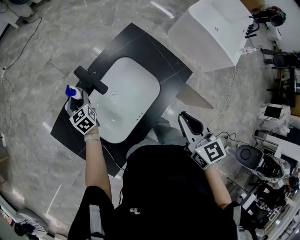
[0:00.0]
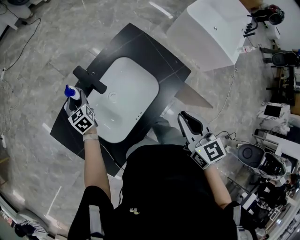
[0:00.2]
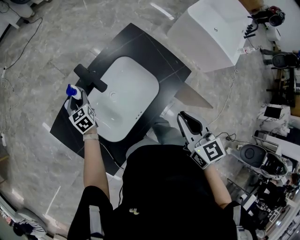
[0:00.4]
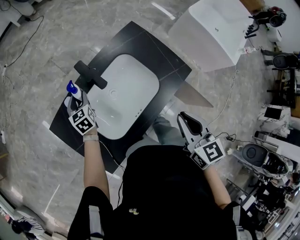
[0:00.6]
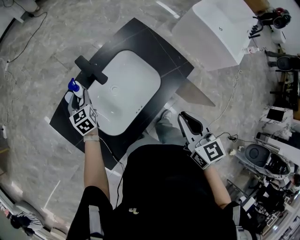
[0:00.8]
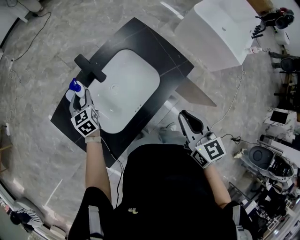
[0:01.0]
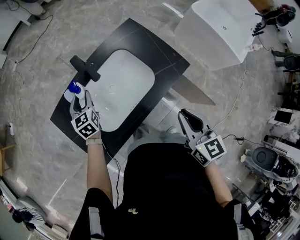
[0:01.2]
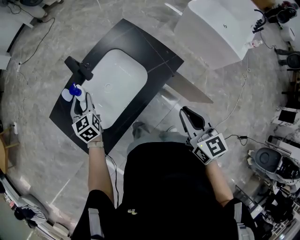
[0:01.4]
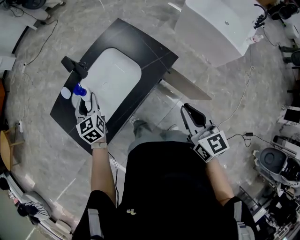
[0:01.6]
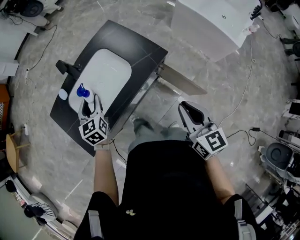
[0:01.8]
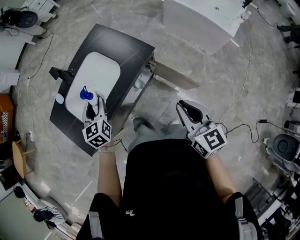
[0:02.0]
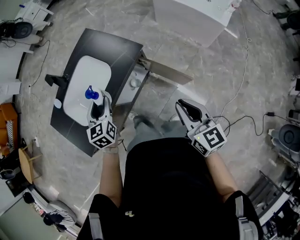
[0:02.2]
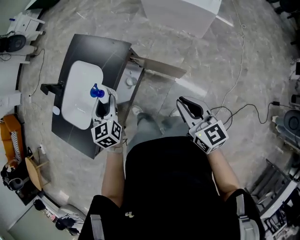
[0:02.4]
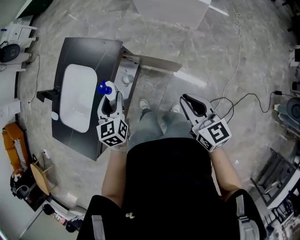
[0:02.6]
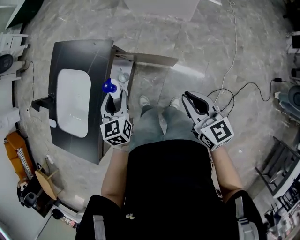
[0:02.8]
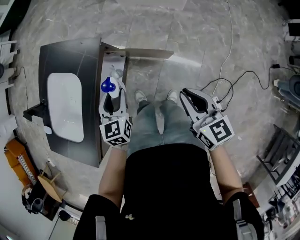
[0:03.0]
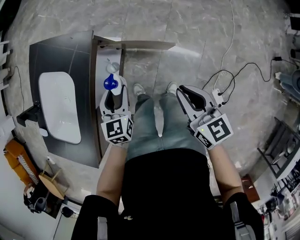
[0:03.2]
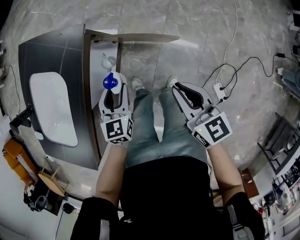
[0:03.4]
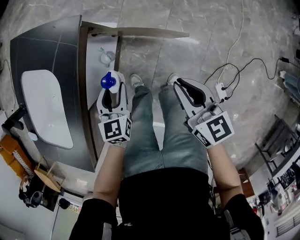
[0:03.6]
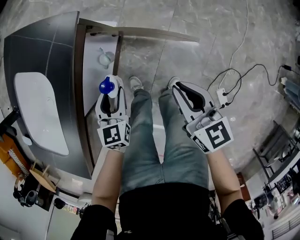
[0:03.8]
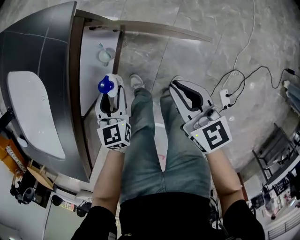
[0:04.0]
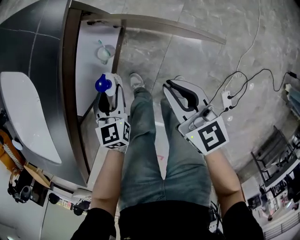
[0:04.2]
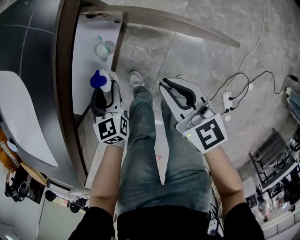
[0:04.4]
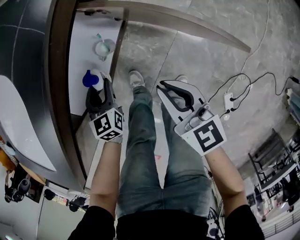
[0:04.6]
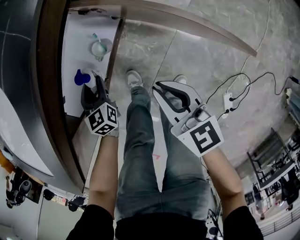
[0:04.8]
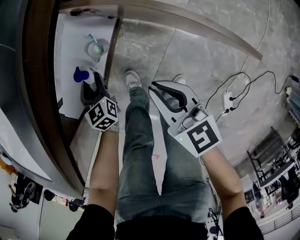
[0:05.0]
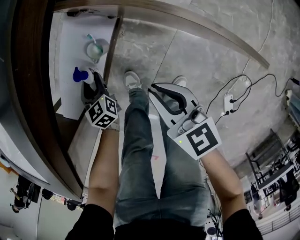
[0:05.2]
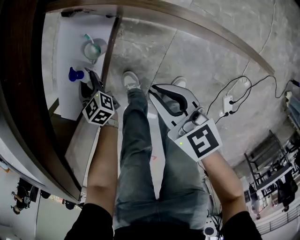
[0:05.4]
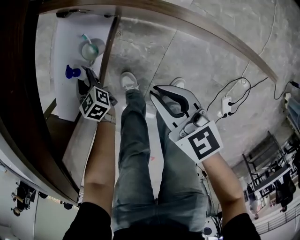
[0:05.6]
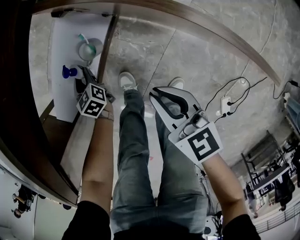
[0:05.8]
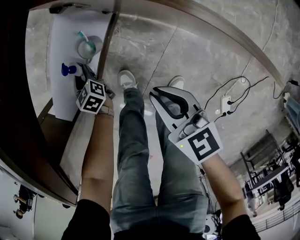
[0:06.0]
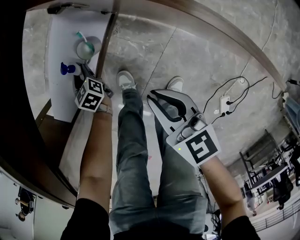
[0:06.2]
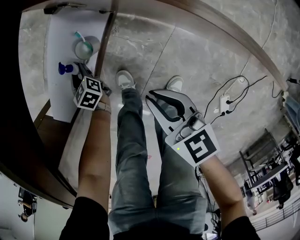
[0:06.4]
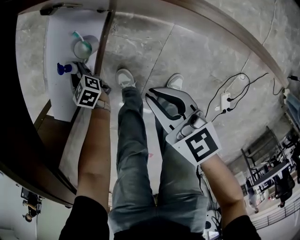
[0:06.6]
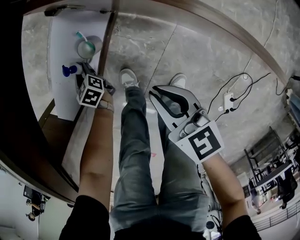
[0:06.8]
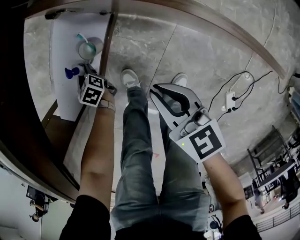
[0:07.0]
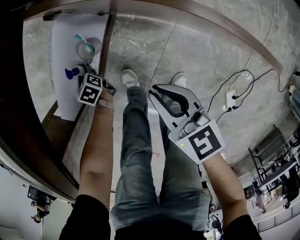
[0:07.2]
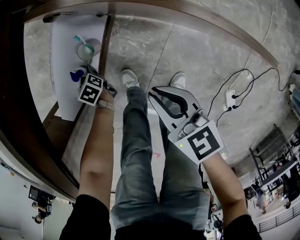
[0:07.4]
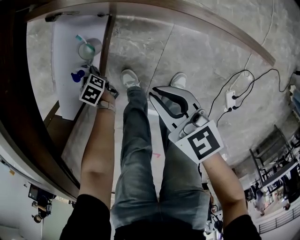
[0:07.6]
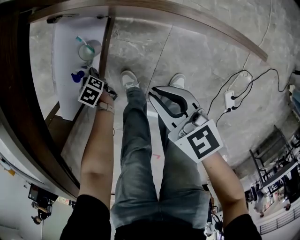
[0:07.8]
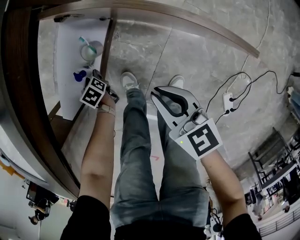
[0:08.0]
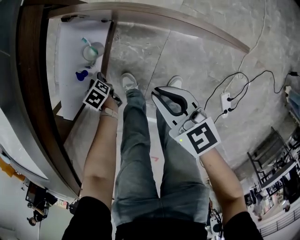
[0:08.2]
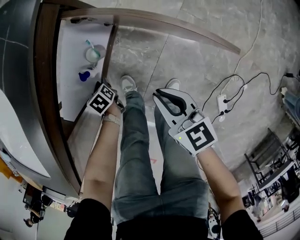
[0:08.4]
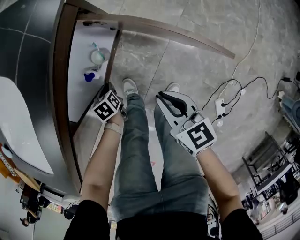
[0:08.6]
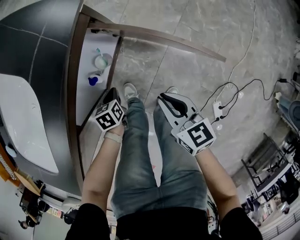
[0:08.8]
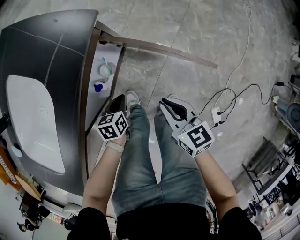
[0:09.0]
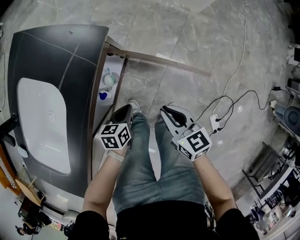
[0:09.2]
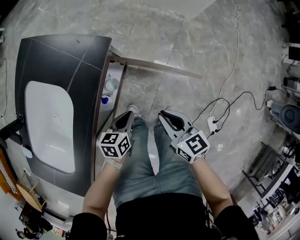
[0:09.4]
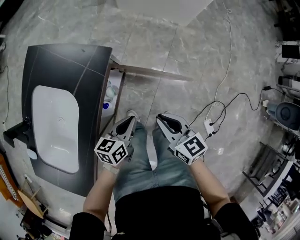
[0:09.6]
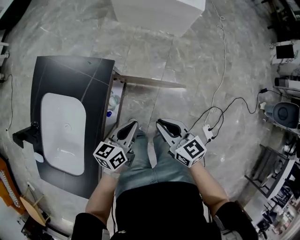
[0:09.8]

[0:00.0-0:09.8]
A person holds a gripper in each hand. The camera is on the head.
0:00.0 to 0:01.4: The left gripper heads backward, upward and to the right, covering approximately 20 cm, while the right gripper goes roughly 15 cm backward and to the right.
0:01.4 to 0:02.8: The left gripper changes place by approximately 50 cm, and changes its angle by about 40 degrees. Meanwhile the right gripper ends up roughly 35 cm from where it was, and changes its angle by roughly 20 degrees.
0:02.8 to 0:04.2: The right gripper heads downward and to the left, covering about 30 cm. Meanwhile the left gripper goes roughly 30 cm downward.
0:04.2 to 0:05.6: The right gripper heads downward, covering approximately 15 cm; the left gripper heads downward and to the left, covering some 25 cm, and turns by some 30 degrees.
0:05.6 to 0:07.0: The left gripper shifts approximately 5 cm downward.
0:07.0 to 0:08.4: The left gripper goes some 10 cm backward and upward, while the right gripper is displaced upward by some 5 cm.
0:08.4 to 0:09.8: The right gripper goes roughly 25 cm upward. The left gripper moves upward, approximately 50 cm, points its fingers some 50 degrees further upward, and closes up.

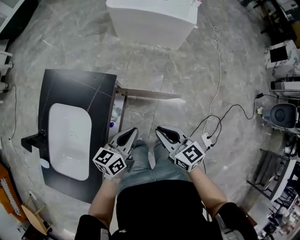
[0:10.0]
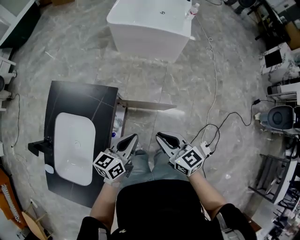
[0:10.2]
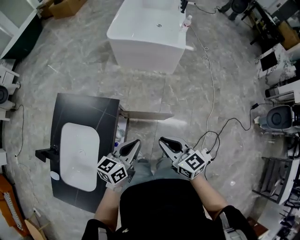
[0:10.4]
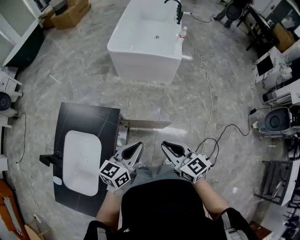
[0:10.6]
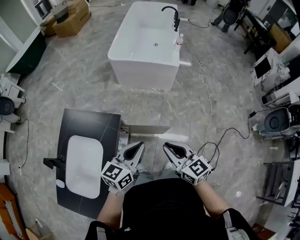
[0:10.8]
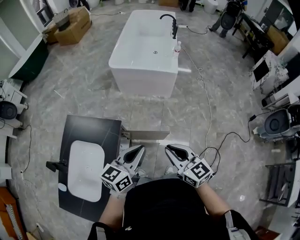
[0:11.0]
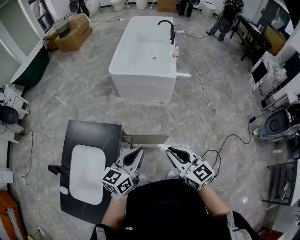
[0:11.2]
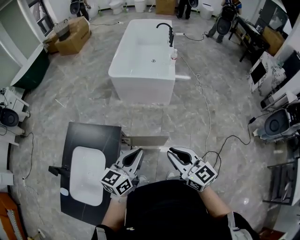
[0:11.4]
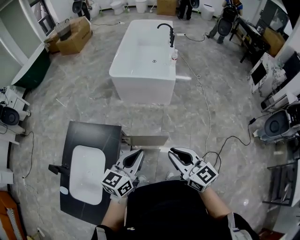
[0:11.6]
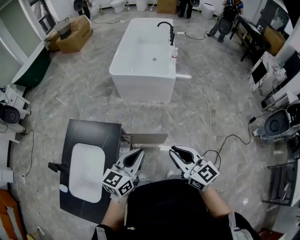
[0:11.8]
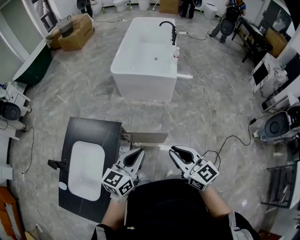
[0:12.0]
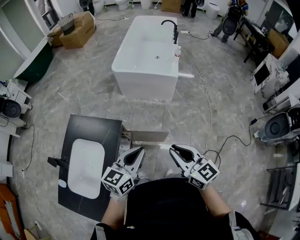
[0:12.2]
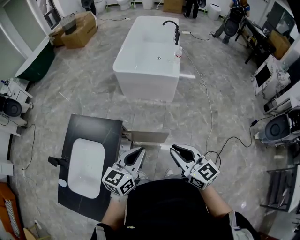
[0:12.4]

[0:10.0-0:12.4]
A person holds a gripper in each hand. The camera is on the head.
0:10.0 to 0:11.2: Both grippers move upward, approximately 25 cm. The left gripper rotates approximately 20 degrees.
0:11.2 to 0:12.4: The grippers stay close to where they were, moving slightly.

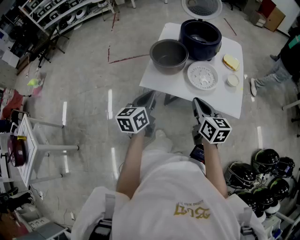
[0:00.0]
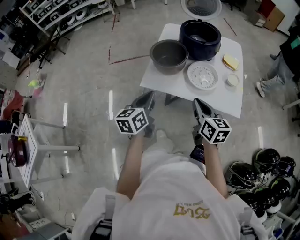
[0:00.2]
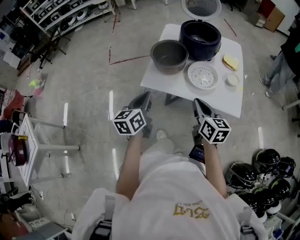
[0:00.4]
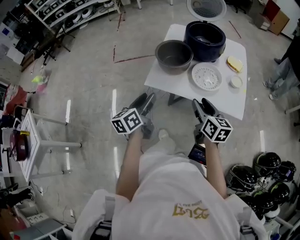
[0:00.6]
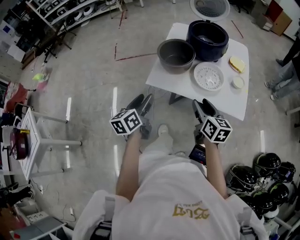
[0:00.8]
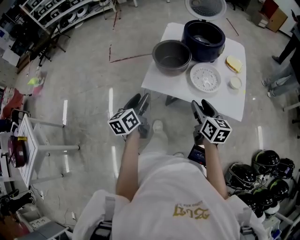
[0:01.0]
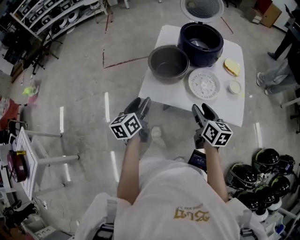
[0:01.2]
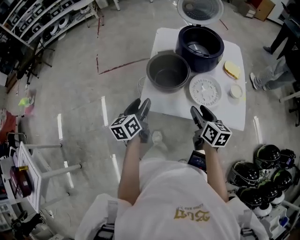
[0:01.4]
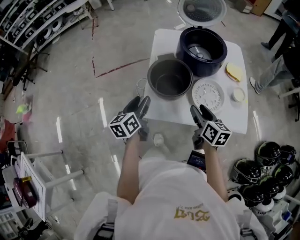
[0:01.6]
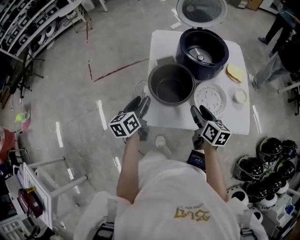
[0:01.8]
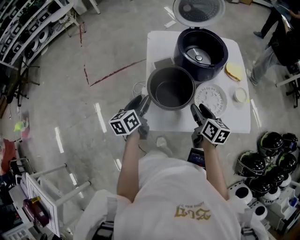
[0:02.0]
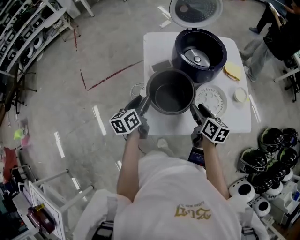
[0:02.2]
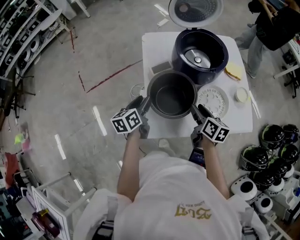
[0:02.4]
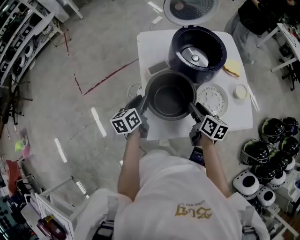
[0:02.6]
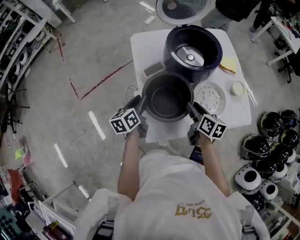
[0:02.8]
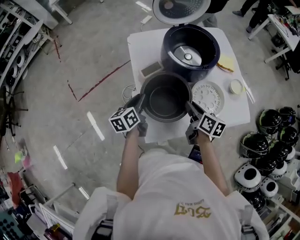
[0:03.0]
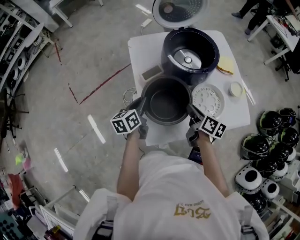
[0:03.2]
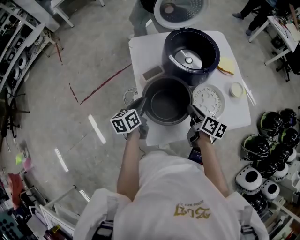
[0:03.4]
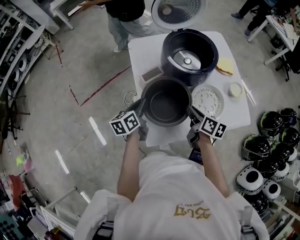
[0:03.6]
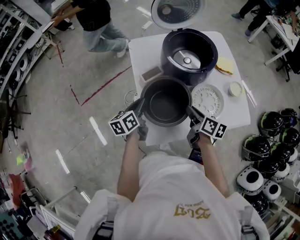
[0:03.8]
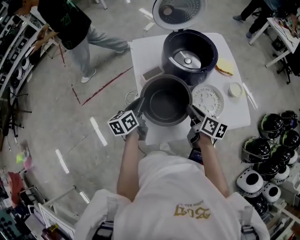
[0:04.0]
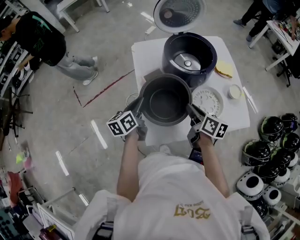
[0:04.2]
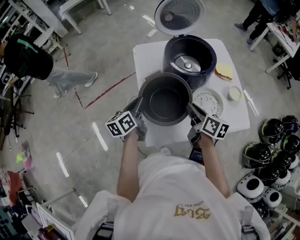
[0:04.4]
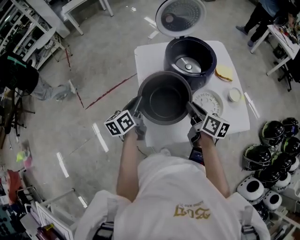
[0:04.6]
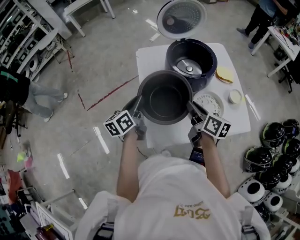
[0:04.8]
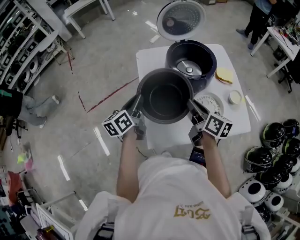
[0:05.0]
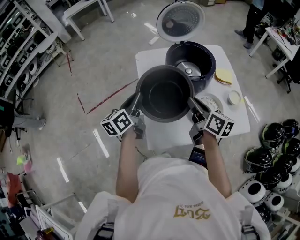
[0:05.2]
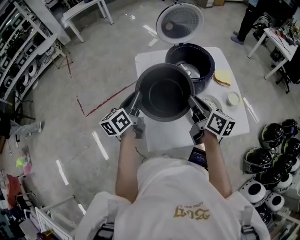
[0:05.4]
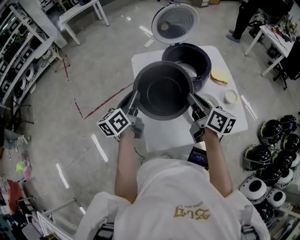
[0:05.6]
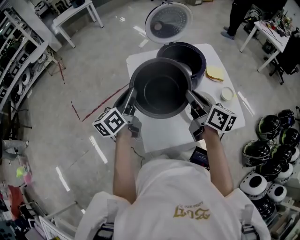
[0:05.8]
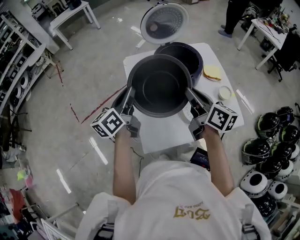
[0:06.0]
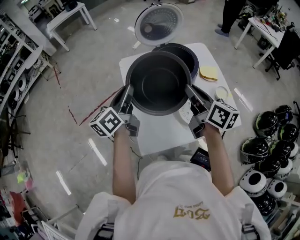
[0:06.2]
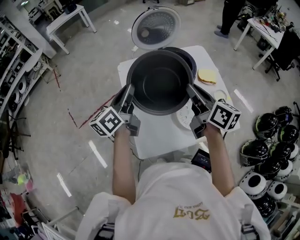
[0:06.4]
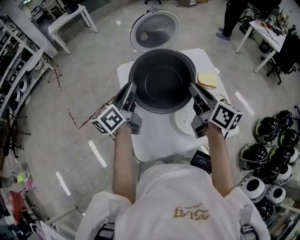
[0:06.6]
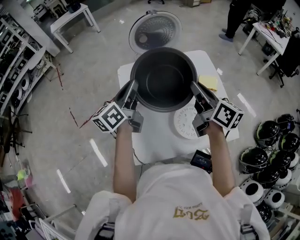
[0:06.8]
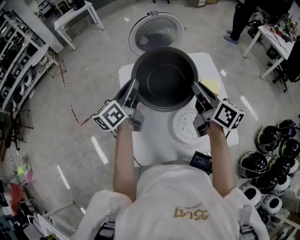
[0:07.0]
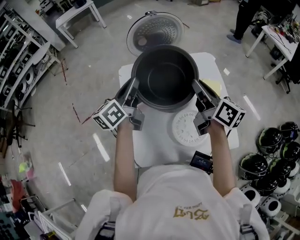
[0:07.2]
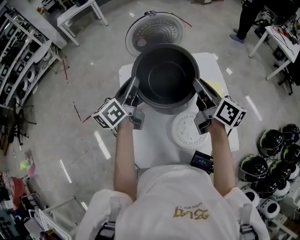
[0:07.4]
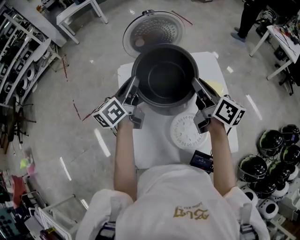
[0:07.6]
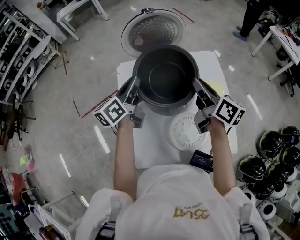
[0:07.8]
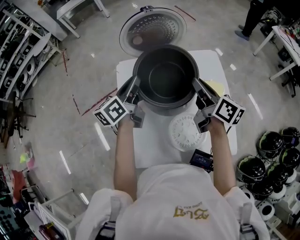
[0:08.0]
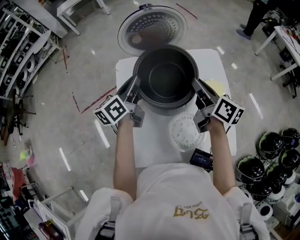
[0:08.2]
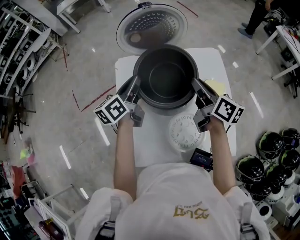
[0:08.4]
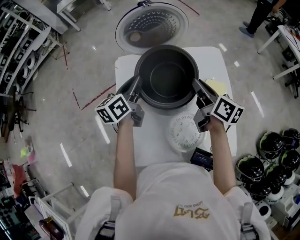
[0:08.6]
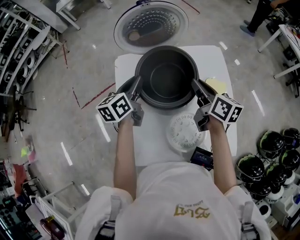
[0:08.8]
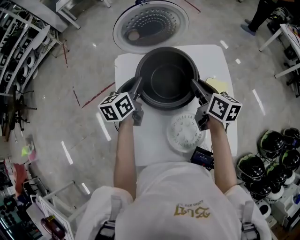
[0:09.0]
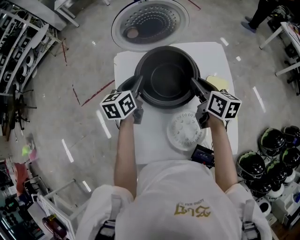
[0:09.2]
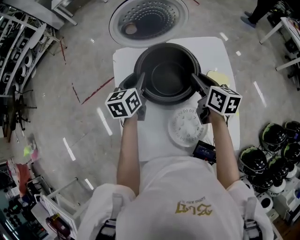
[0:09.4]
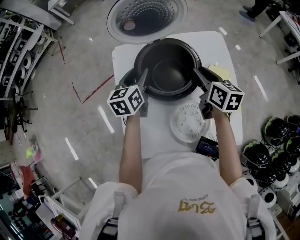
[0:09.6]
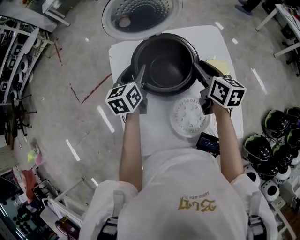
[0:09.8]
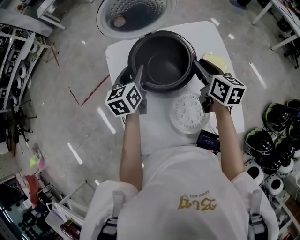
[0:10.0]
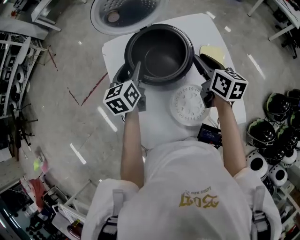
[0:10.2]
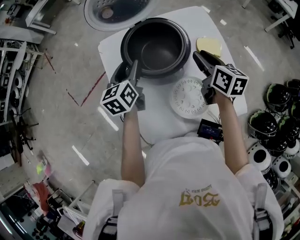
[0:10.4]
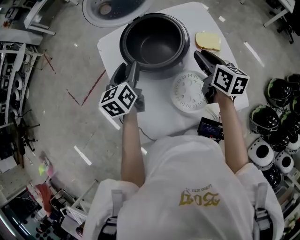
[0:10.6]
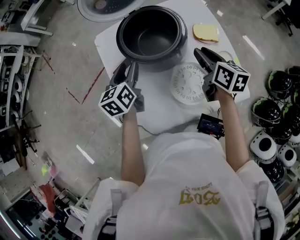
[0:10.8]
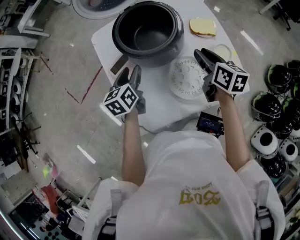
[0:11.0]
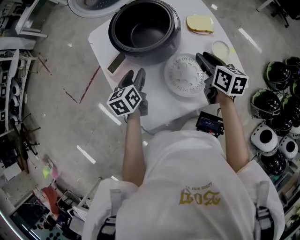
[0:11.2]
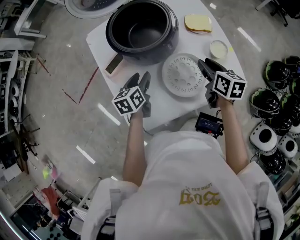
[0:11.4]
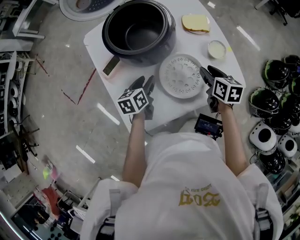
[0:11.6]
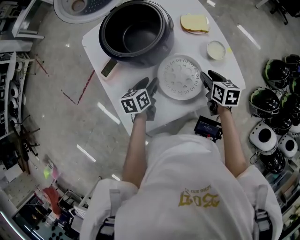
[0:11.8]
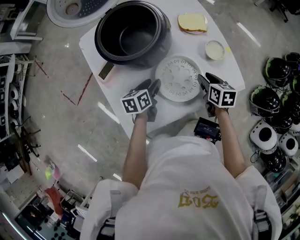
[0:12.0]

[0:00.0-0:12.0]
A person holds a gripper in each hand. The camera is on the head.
0:00.0 to 0:01.6: The left gripper is displaced forward and to the left by about 20 cm, and opens, while the right gripper travels forward and downward by approximately 15 cm, and opens up.
0:01.6 to 0:03.0: The left gripper shifts approximately 20 cm forward and downward, changes its angle by roughly 20 degrees, and closes, while the right gripper is displaced forward and downward by roughly 10 cm, turns by approximately 20 degrees, and closes.
0:03.0 to 0:04.4: The grippers both shift upward by about 5 cm.
0:04.4 to 0:06.0: Both grippers travel together upward, about 15 cm.
0:06.0 to 0:07.6: The grippers both shift forward and to the right by roughly 20 cm.
0:07.6 to 0:09.0: Both grippers travel together downward, some 10 cm. The left gripper swivels some 20 degrees.
0:09.0 to 0:10.4: The left gripper opens. The right gripper moves roughly 5 cm.
0:10.4 to 0:12.0: Both grippers move downward, backward and to the right, roughly 25 cm. The right gripper turns by some 20 degrees; the left gripper rotates about 30 degrees.
